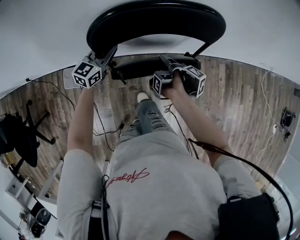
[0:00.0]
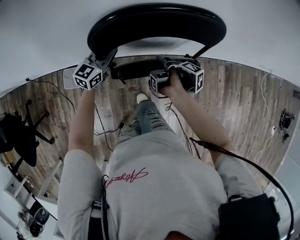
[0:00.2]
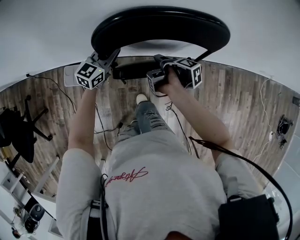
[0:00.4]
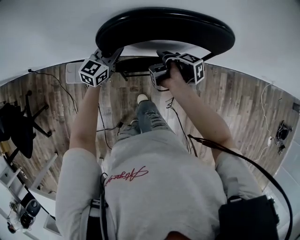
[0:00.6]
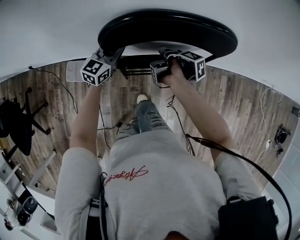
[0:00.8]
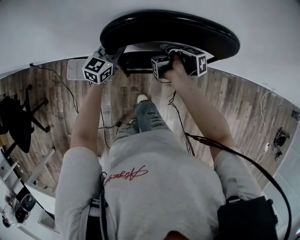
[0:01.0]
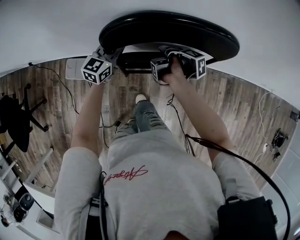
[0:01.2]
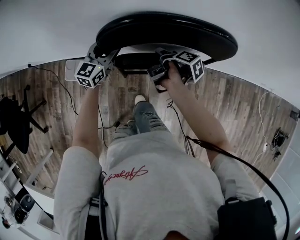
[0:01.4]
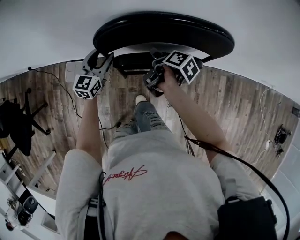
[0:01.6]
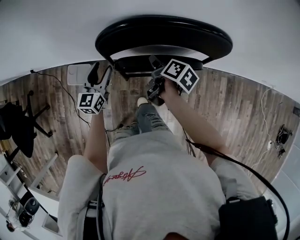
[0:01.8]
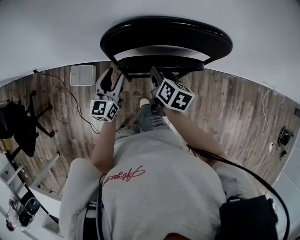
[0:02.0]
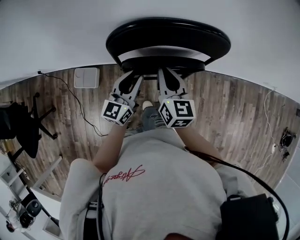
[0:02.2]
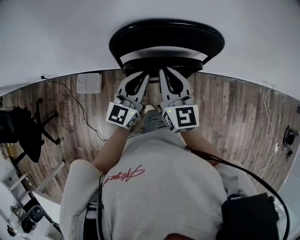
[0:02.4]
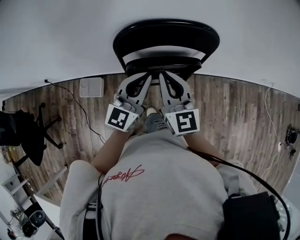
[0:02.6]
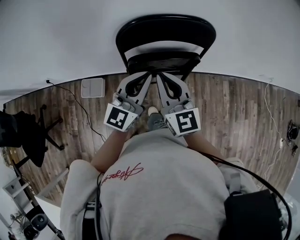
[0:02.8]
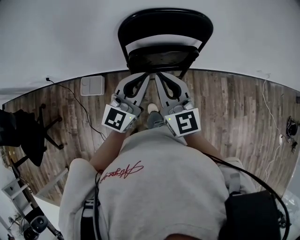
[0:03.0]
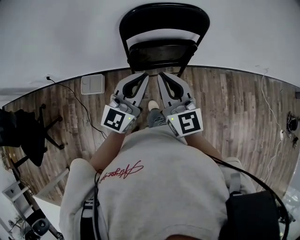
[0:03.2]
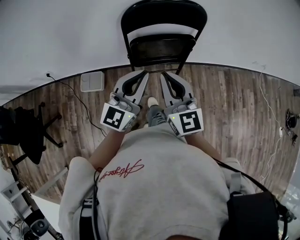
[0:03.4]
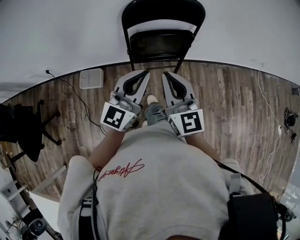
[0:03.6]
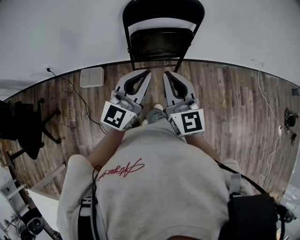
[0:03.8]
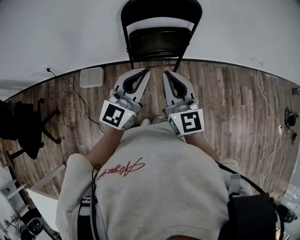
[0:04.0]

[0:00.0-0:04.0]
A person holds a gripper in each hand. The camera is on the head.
0:00.0 to 0:01.4: The right gripper is displaced forward by some 10 cm, and changes its angle by about 30 degrees; the left gripper changes place by approximately 5 cm, and opens.
0:01.4 to 0:02.6: The right gripper is displaced upward and backward by some 25 cm, rolls counterclockwise, seen from behind, by about 90 degrees, and closes up. The left gripper goes some 25 cm upward, backward and to the right, and closes up.
0:02.6 to 0:04.0: The grippers both shift backward by about 25 cm.

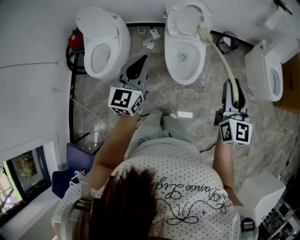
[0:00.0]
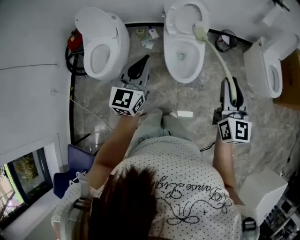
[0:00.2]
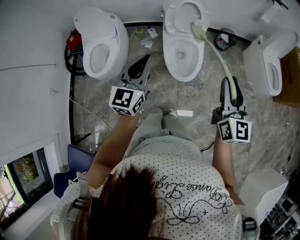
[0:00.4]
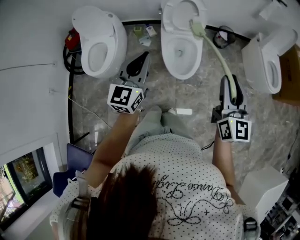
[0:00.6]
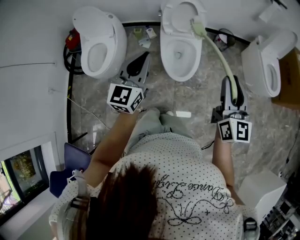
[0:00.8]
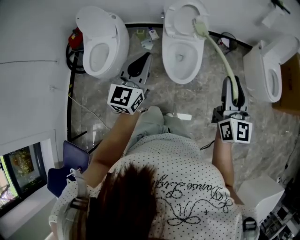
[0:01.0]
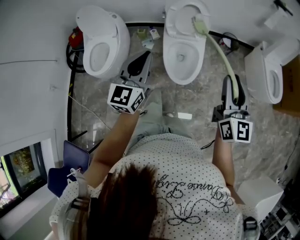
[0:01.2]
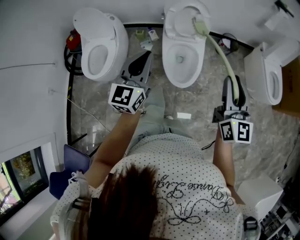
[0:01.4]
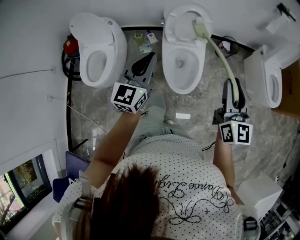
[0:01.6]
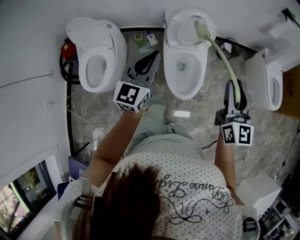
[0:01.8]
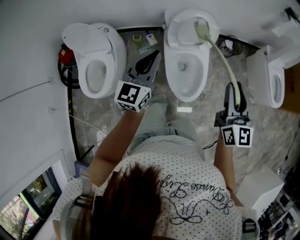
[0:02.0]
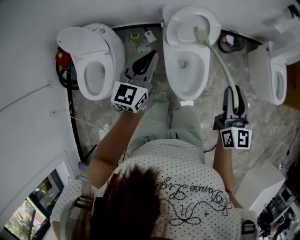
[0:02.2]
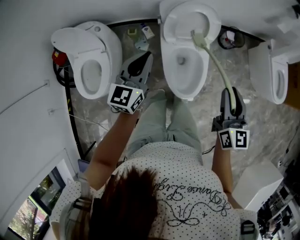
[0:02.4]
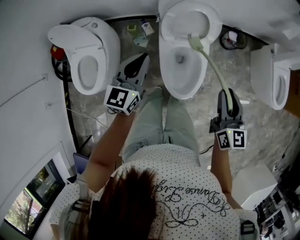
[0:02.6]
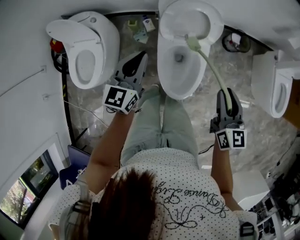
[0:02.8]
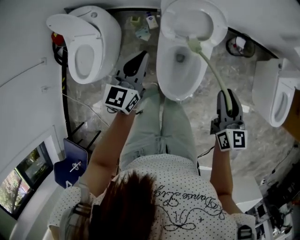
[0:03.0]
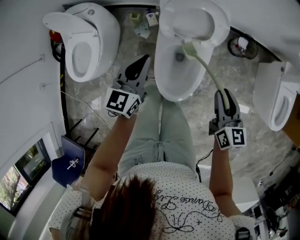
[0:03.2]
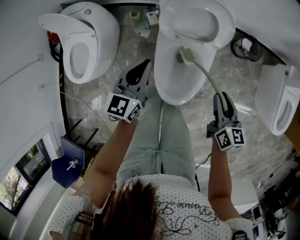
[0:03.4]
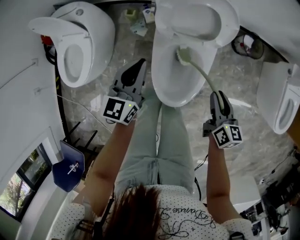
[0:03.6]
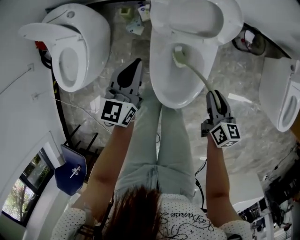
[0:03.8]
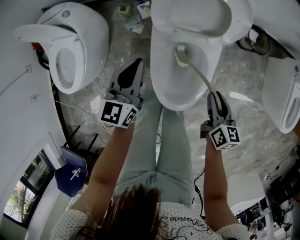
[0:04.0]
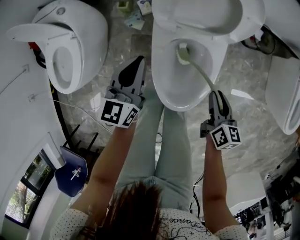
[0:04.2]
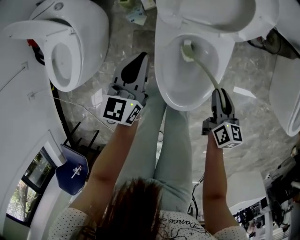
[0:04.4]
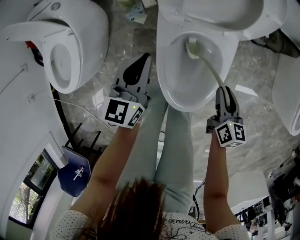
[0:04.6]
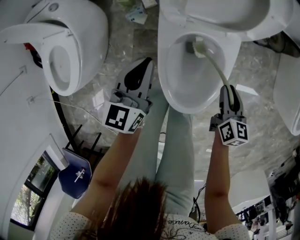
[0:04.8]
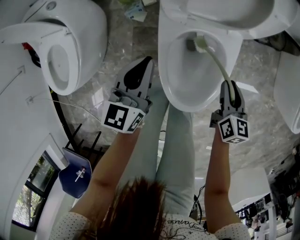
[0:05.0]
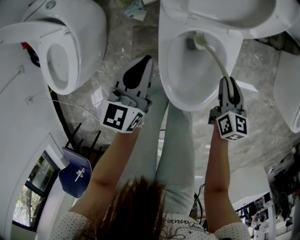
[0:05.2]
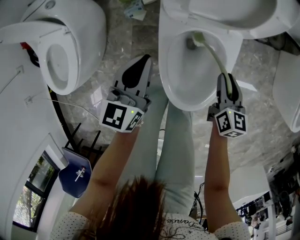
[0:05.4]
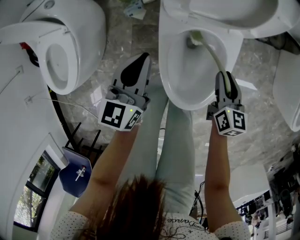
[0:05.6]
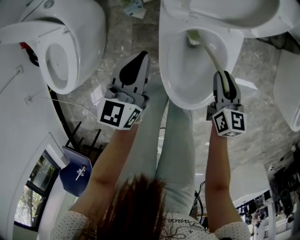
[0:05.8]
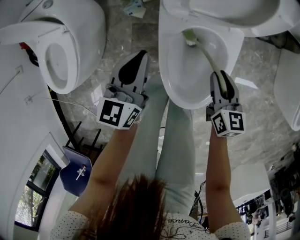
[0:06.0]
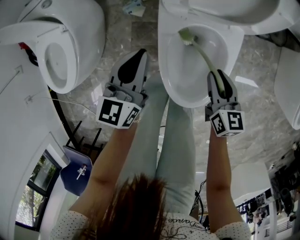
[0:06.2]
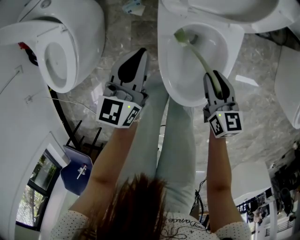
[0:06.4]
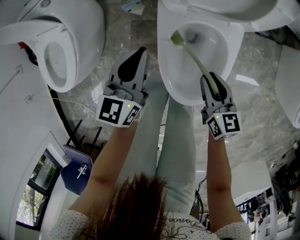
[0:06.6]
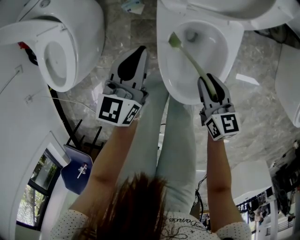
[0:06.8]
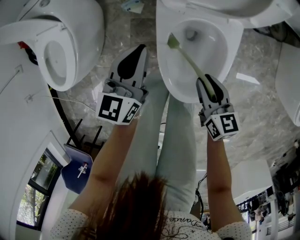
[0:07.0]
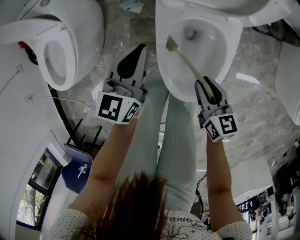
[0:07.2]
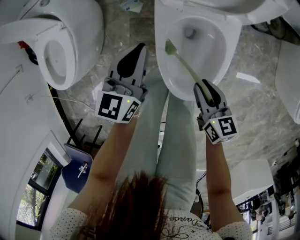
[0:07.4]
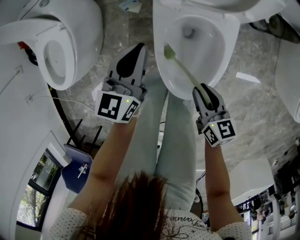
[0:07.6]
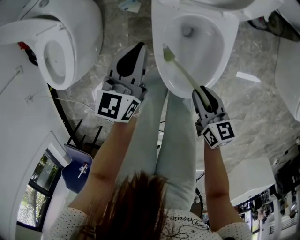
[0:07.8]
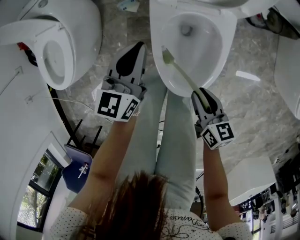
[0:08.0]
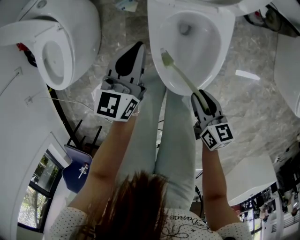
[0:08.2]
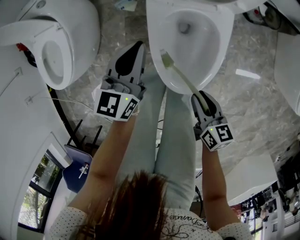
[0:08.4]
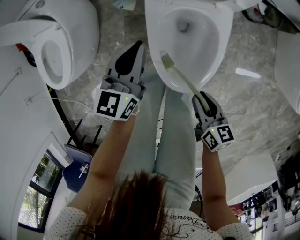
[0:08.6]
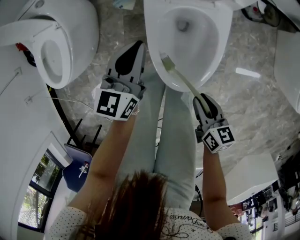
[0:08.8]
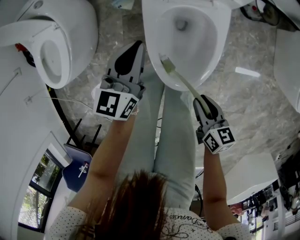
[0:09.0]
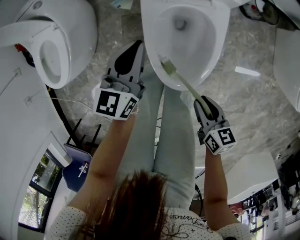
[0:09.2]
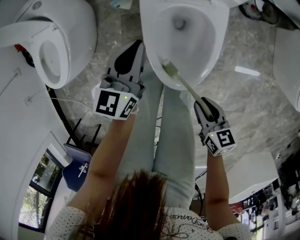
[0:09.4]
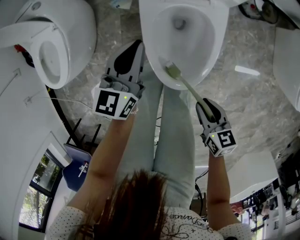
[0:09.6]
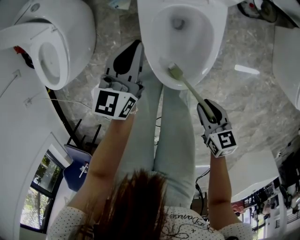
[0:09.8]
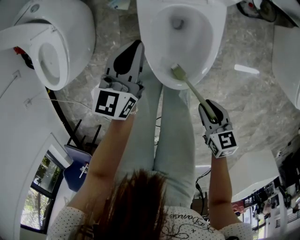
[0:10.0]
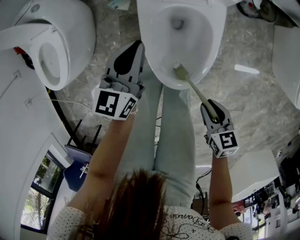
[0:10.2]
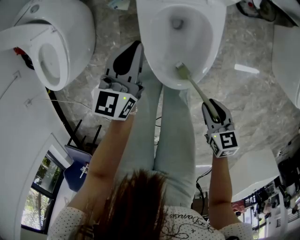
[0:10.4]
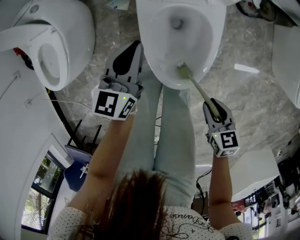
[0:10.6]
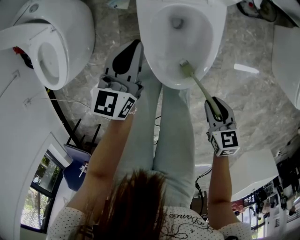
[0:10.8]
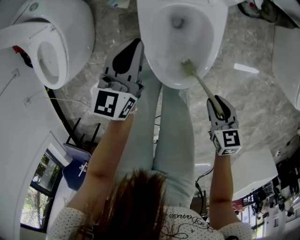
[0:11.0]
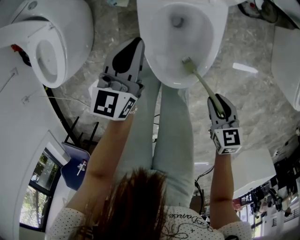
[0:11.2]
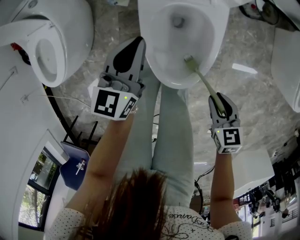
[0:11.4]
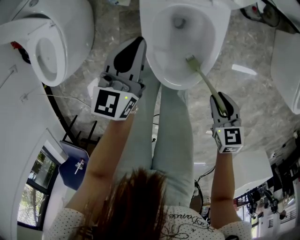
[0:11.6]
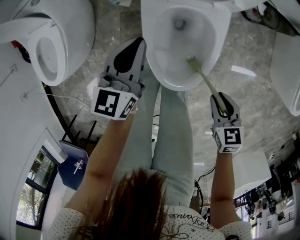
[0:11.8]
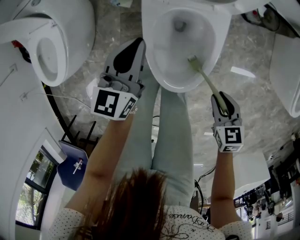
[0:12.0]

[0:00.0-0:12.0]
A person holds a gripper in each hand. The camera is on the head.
0:00.0 to 0:01.6: The two grippers go some 10 cm forward.
0:01.6 to 0:03.0: Both grippers travel together forward and downward, about 25 cm. The right gripper rotates some 30 degrees.
0:03.0 to 0:04.4: Both grippers travel together downward, some 25 cm. The right gripper changes its angle by about 30 degrees.
0:04.4 to 0:06.0: The right gripper moves to the left, roughly 5 cm.
0:06.0 to 0:07.6: The right gripper shifts roughly 10 cm backward.
0:07.6 to 0:09.0: The right gripper shifts roughly 10 cm backward.
0:09.0 to 0:10.4: The grippers make only small movements.
0:10.4 to 0:12.0: The right gripper goes about 5 cm forward.

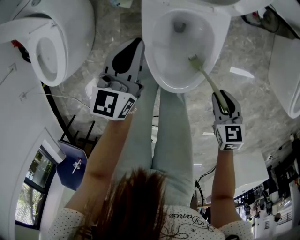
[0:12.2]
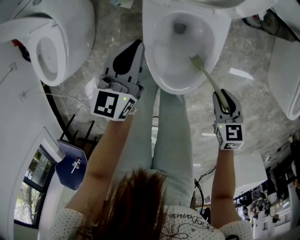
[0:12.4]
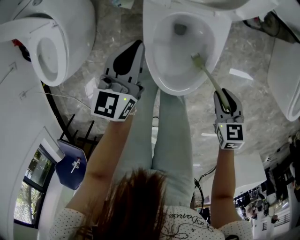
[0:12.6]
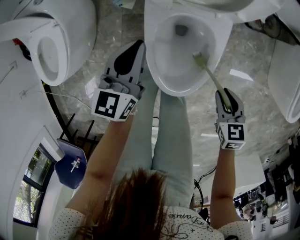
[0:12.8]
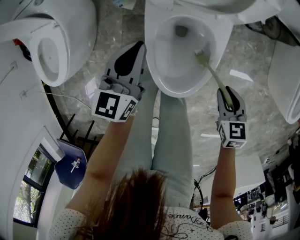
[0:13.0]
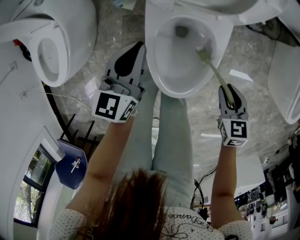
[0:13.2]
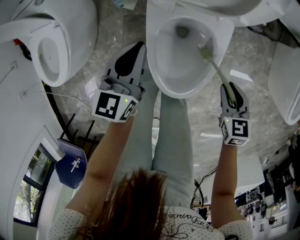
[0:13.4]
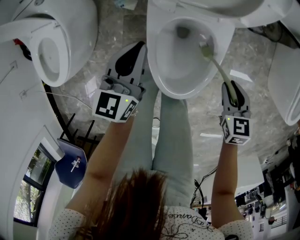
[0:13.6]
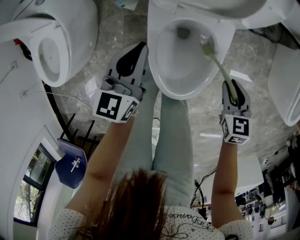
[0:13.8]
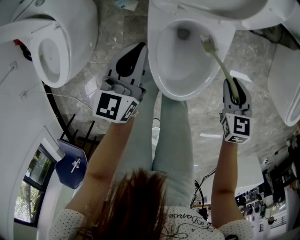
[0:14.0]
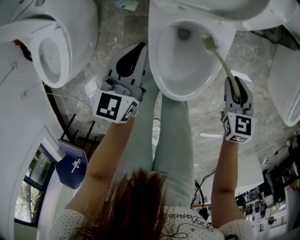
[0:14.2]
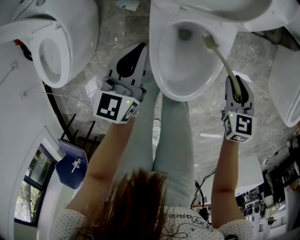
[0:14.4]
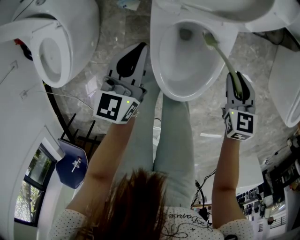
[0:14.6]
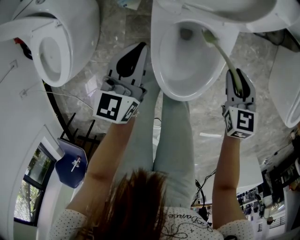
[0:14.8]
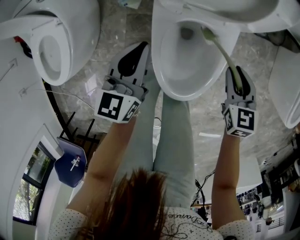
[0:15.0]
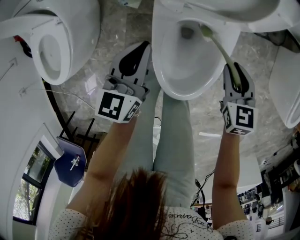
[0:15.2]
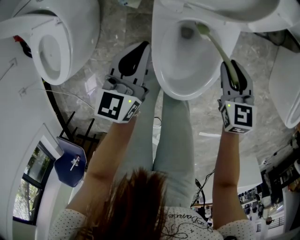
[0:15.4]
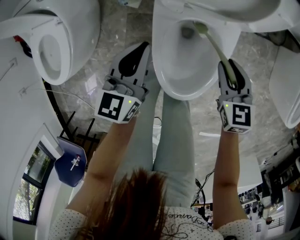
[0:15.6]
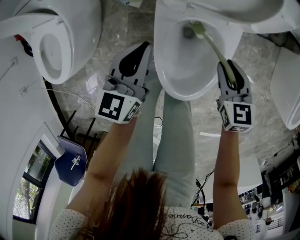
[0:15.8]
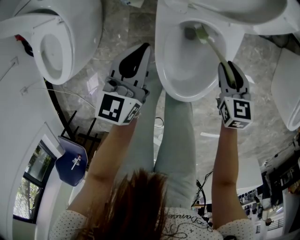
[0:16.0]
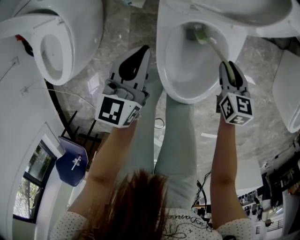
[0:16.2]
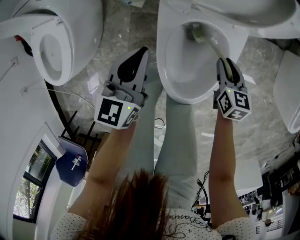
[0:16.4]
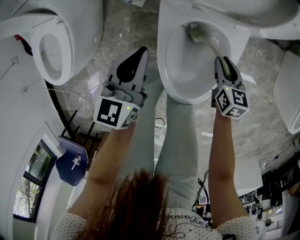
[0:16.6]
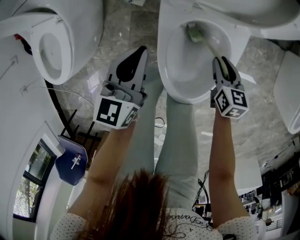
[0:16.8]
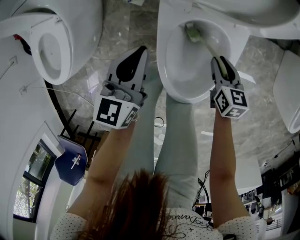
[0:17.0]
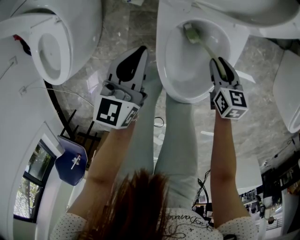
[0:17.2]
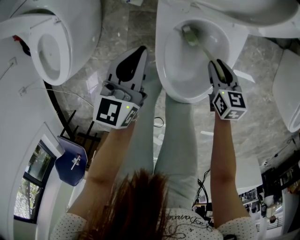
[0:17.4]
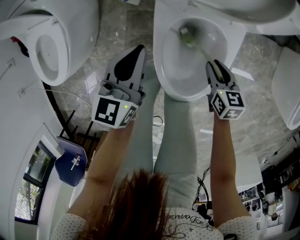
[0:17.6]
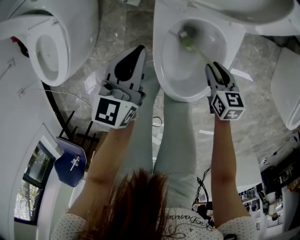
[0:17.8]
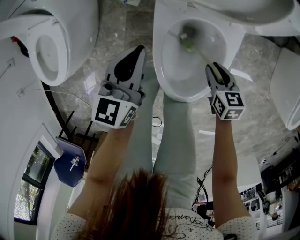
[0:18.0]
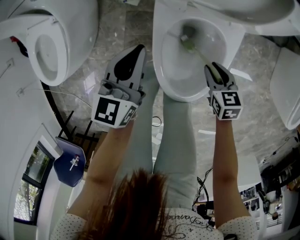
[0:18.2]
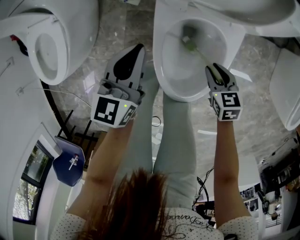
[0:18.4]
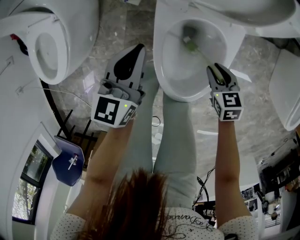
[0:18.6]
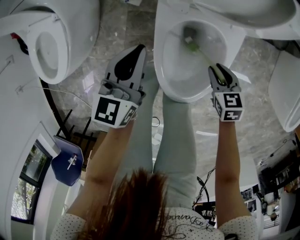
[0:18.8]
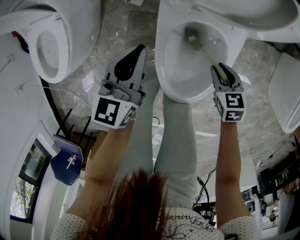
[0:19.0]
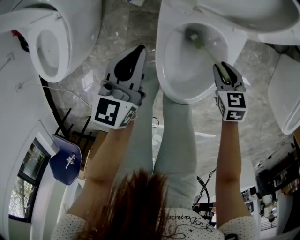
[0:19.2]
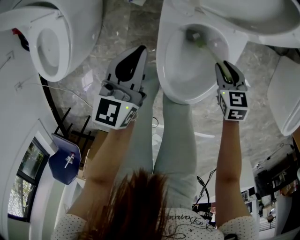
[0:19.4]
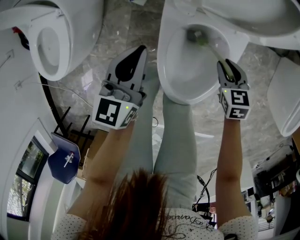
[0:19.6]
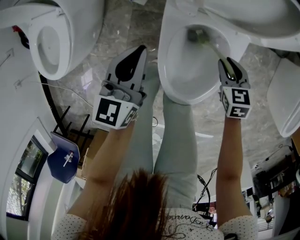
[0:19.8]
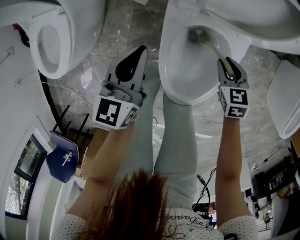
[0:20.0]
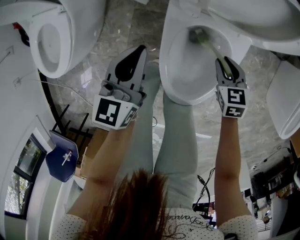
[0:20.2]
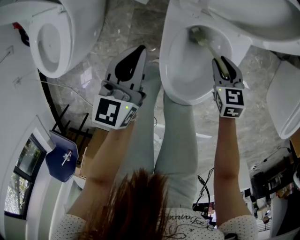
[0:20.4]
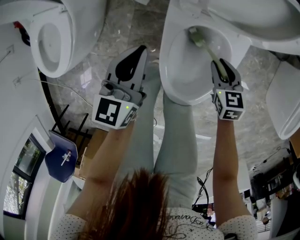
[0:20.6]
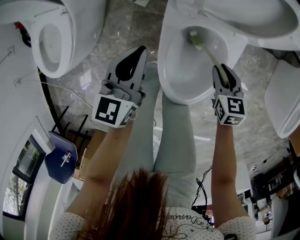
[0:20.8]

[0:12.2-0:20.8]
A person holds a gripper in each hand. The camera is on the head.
0:12.2 to 0:13.6: The right gripper moves forward, some 10 cm.
0:13.6 to 0:15.0: The right gripper is displaced forward by some 5 cm.
0:15.0 to 0:16.6: The right gripper goes some 10 cm downward.
0:16.6 to 0:18.0: The grippers make only small movements.
0:18.0 to 0:19.4: There are only small adjustments of the grippers.
0:19.4 to 0:20.8: The grippers stay close to where they were, moving slightly.
